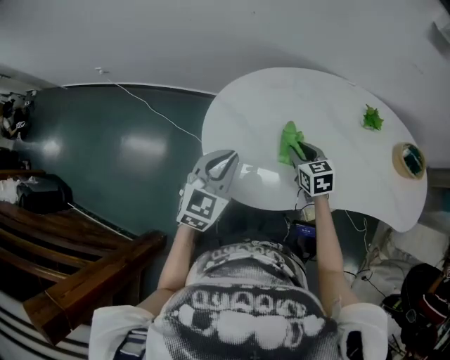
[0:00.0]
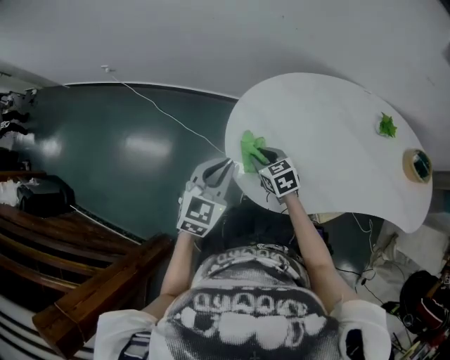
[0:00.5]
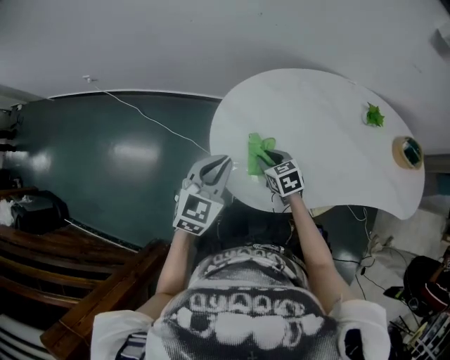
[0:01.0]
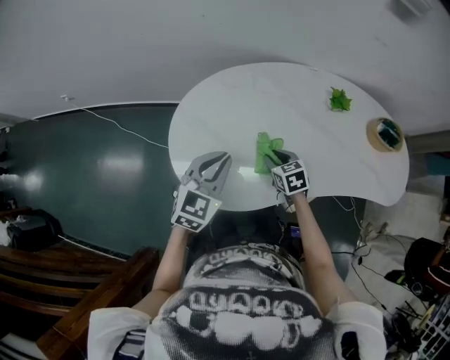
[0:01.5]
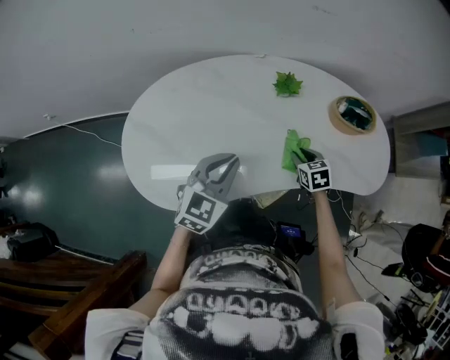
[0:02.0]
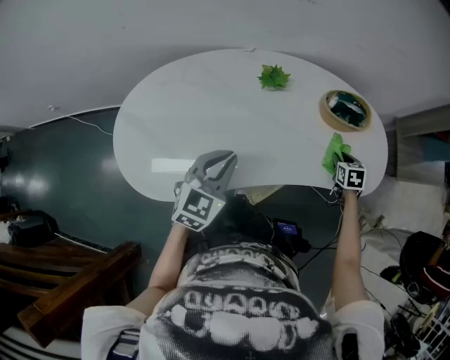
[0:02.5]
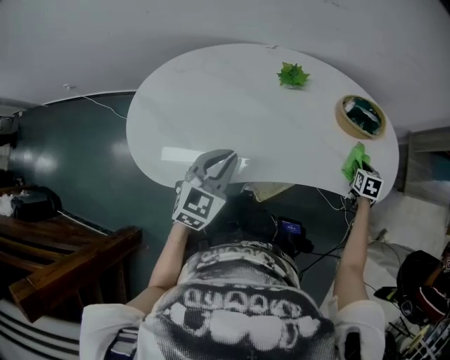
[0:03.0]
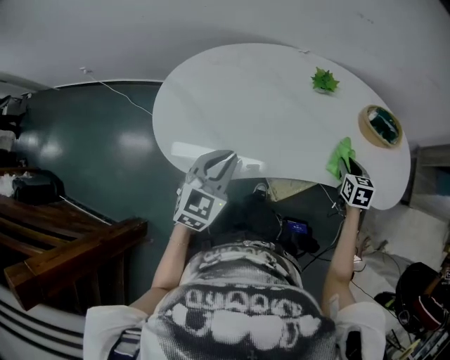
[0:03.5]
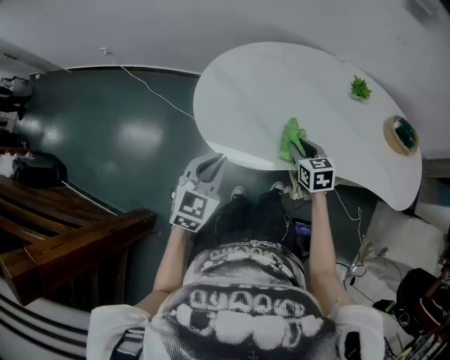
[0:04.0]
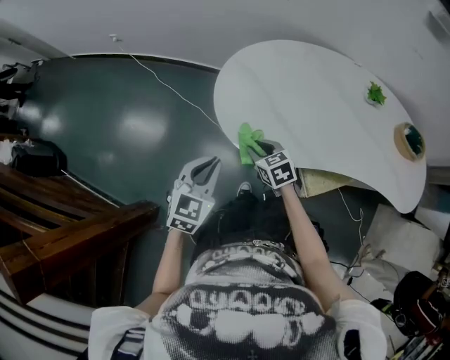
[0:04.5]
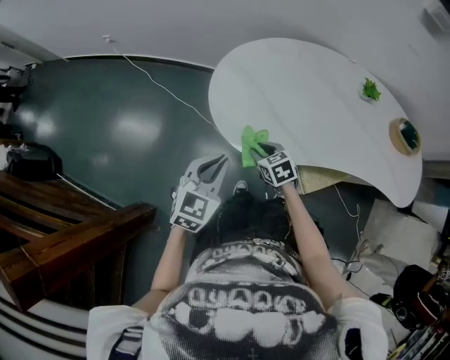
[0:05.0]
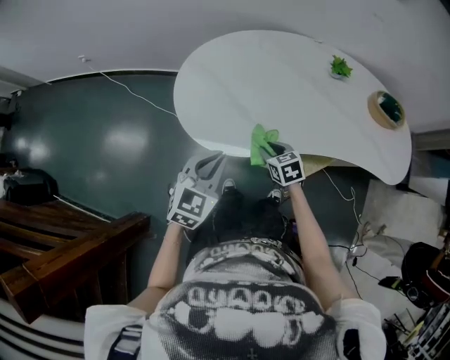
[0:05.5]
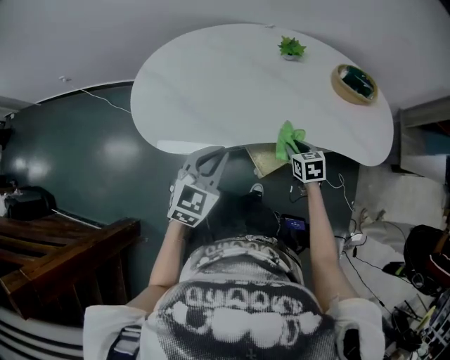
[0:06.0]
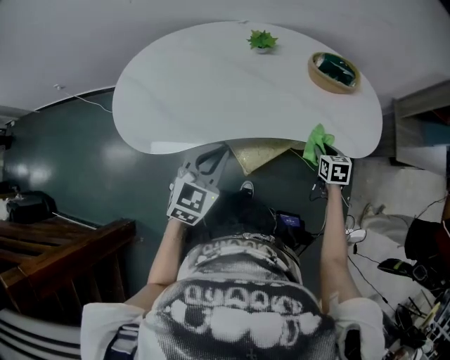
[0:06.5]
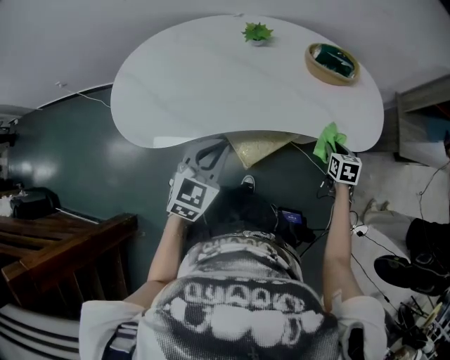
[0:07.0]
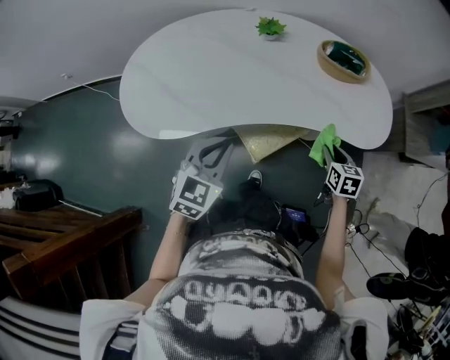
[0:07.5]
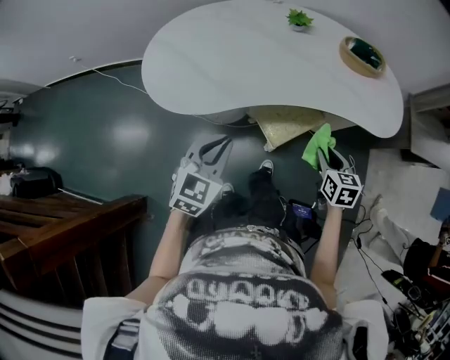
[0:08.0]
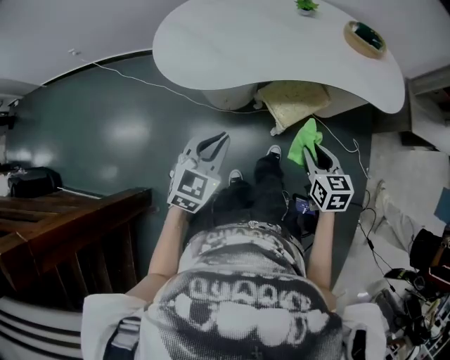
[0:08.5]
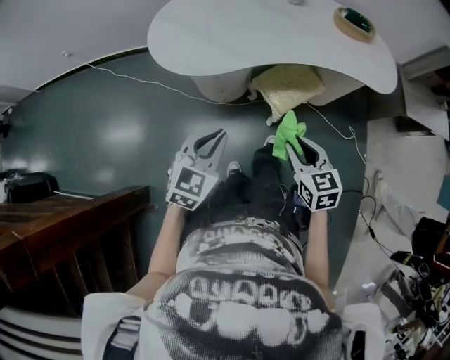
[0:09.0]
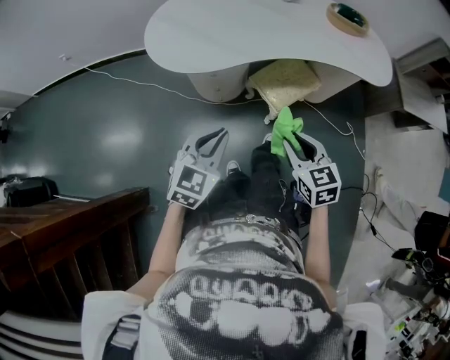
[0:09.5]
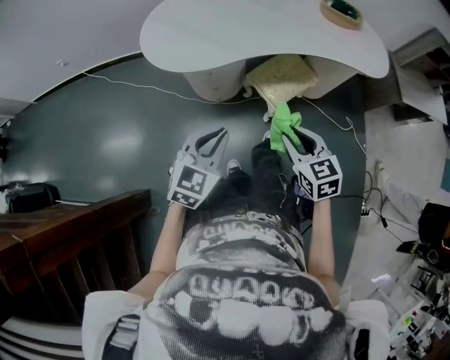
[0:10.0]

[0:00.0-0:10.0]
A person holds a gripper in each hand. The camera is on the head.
0.0 to 2.0 s: The left gripper shifts by roughly 30 cm; the right gripper moves approximately 35 cm, and changes its angle by about 20 degrees.
2.0 to 4.0 s: The right gripper ends up about 30 cm from where it was, and changes its angle by some 20 degrees, while the left gripper ends up about 30 cm from where it was, and turns by roughly 20 degrees.
4.0 to 6.0 s: The left gripper ends up roughly 20 cm from where it was. The right gripper shifts by about 25 cm.
6.0 to 8.0 s: The right gripper travels backward, to the right and upward by about 20 cm. Meanwhile the left gripper goes roughly 10 cm backward, and goes to the right and returns, some 15 cm each way.
8.0 to 10.0 s: The left gripper heads backward, covering some 15 cm; the right gripper goes some 25 cm backward and to the left, and turns by some 20 degrees.

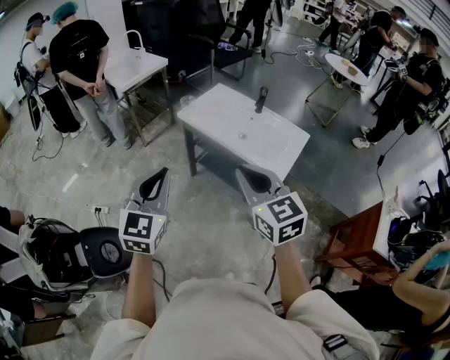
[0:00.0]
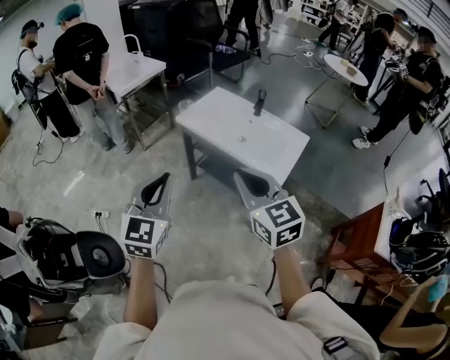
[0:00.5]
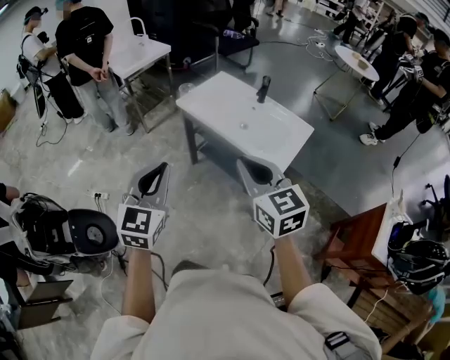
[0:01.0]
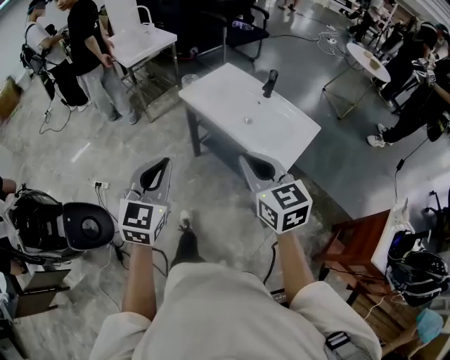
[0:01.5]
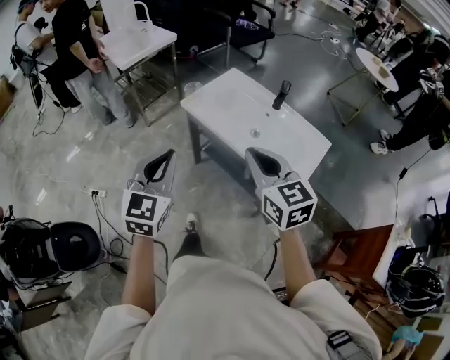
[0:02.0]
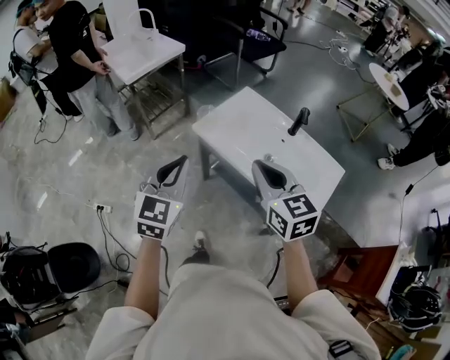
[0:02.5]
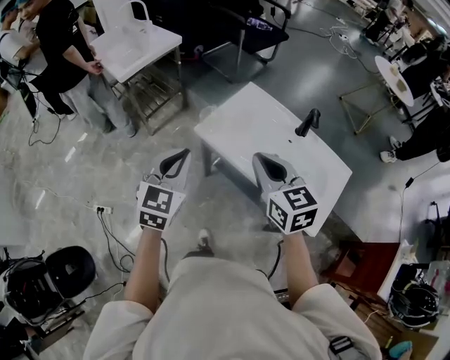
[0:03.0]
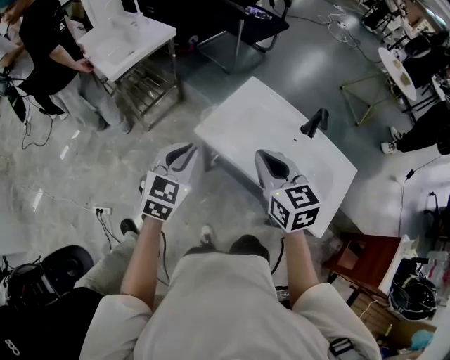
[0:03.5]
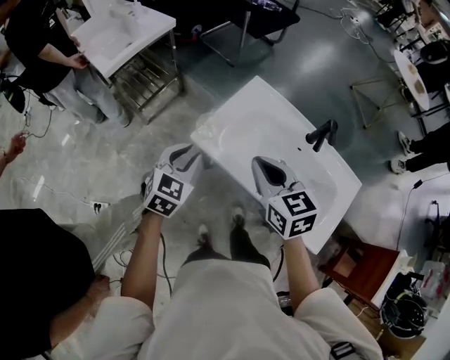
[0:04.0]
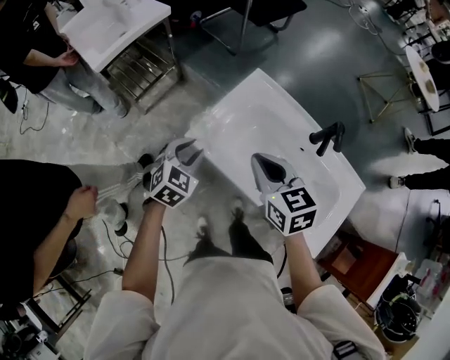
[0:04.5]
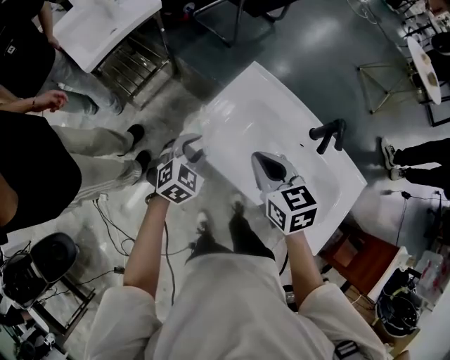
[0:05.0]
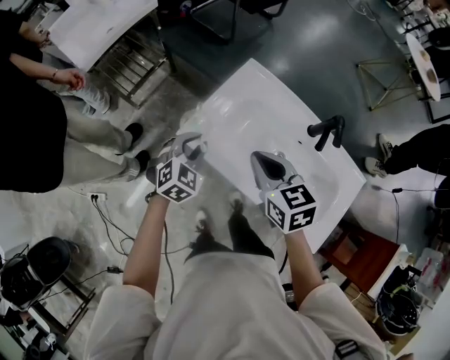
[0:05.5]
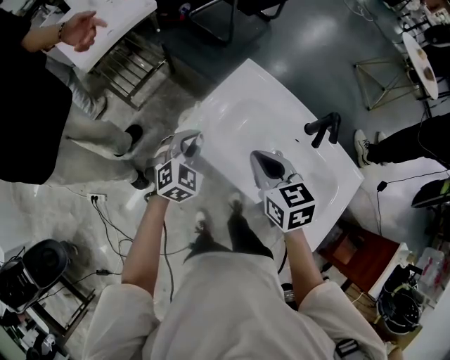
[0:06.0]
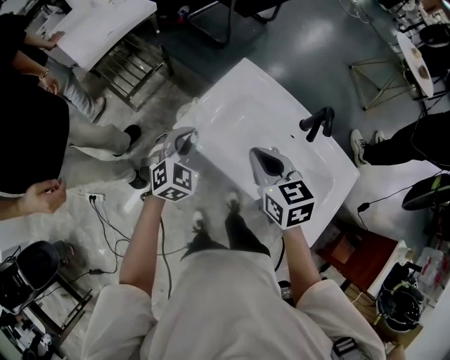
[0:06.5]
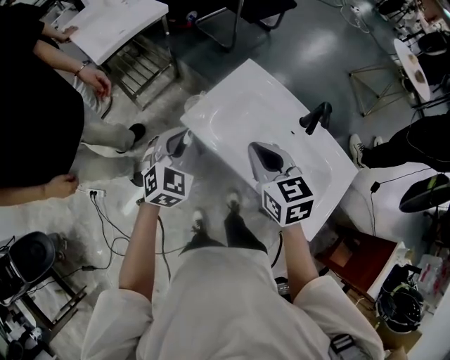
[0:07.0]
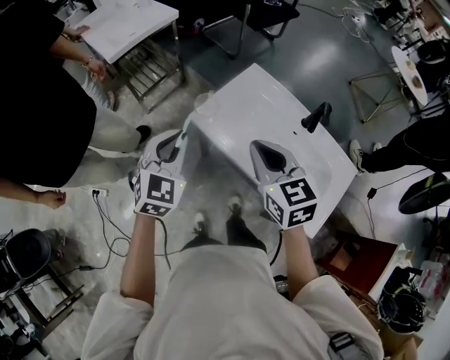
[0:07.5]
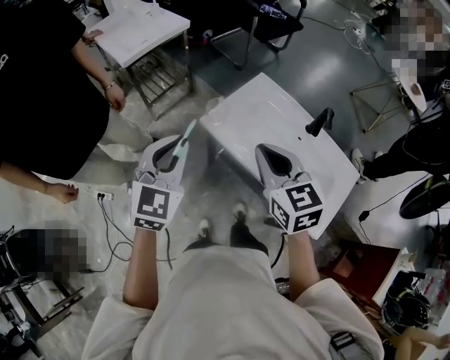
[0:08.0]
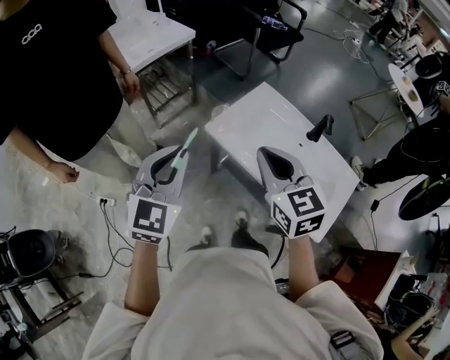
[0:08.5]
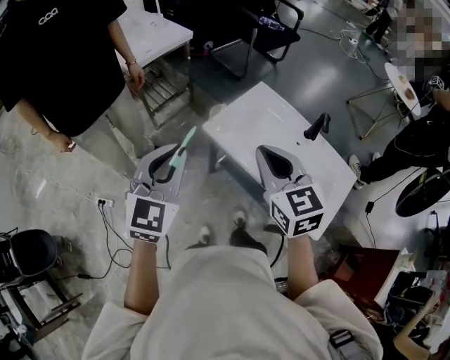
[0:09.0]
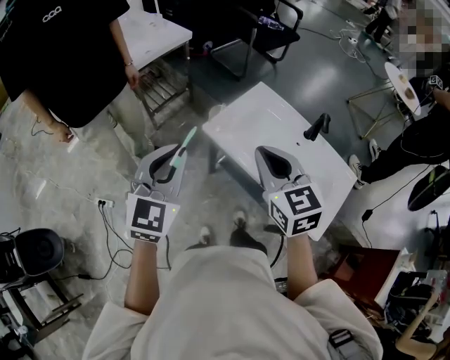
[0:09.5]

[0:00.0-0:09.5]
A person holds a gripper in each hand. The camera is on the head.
0.0 to 2.0 s: The grippers both shift forward by approximately 20 cm.
2.0 to 4.0 s: The left gripper shifts approximately 40 cm forward and downward, turns by some 30 degrees, and opens its fingers. Meanwhile the right gripper moves forward, about 35 cm.
4.0 to 5.5 s: The right gripper is displaced downward and forward by roughly 10 cm, while the left gripper goes some 15 cm downward, forward and to the right.
5.5 to 7.5 s: The left gripper moves upward, backward and to the left, some 25 cm, and rotates roughly 20 degrees. Meanwhile the right gripper moves backward and upward, about 15 cm.
7.5 to 9.5 s: The right gripper travels upward and backward by approximately 10 cm, while the left gripper goes about 15 cm upward, backward and to the left.

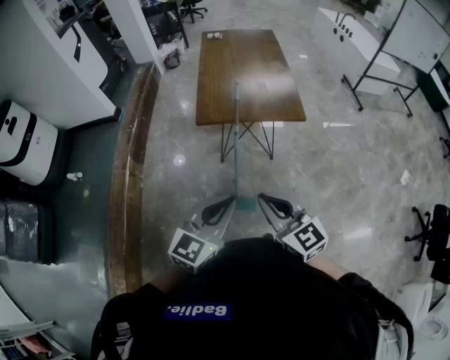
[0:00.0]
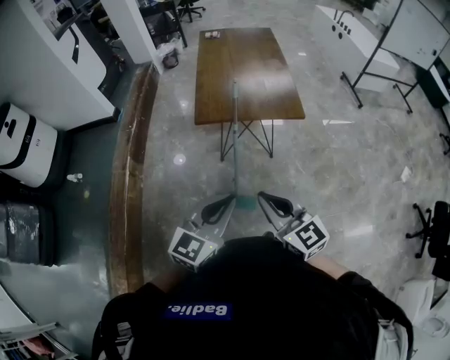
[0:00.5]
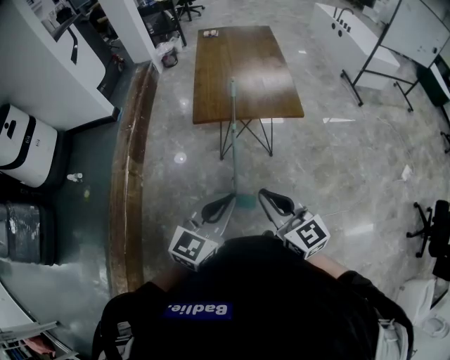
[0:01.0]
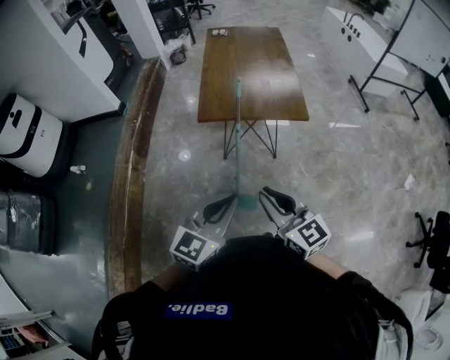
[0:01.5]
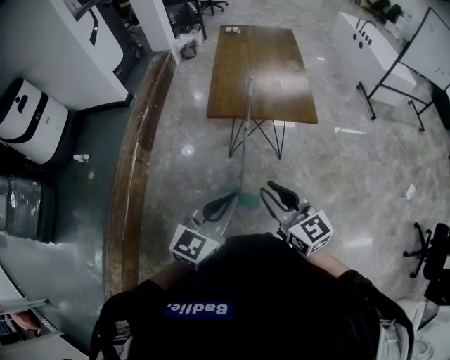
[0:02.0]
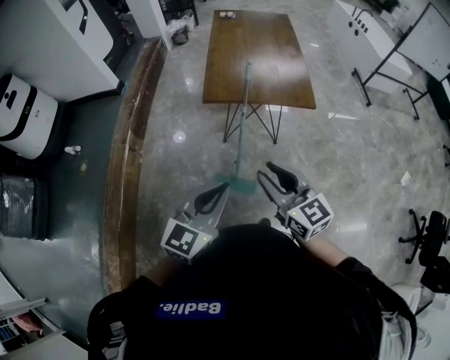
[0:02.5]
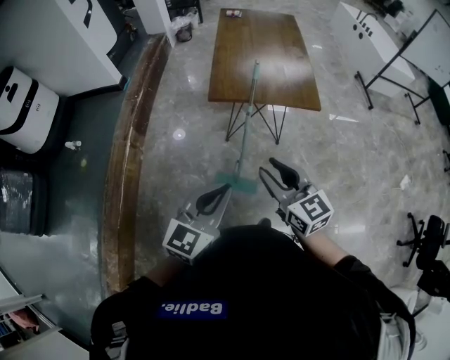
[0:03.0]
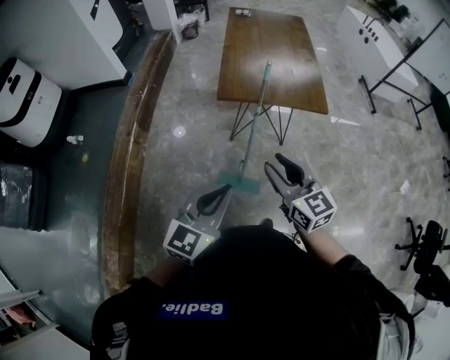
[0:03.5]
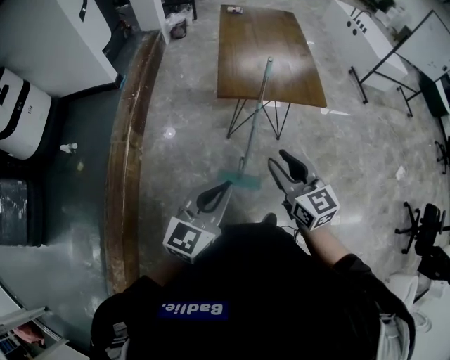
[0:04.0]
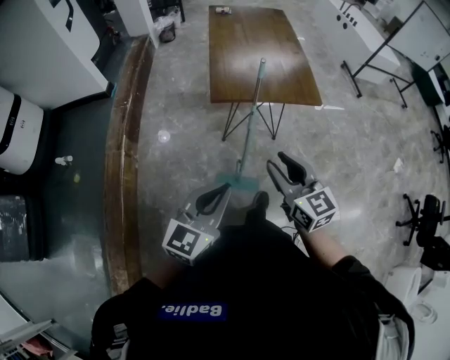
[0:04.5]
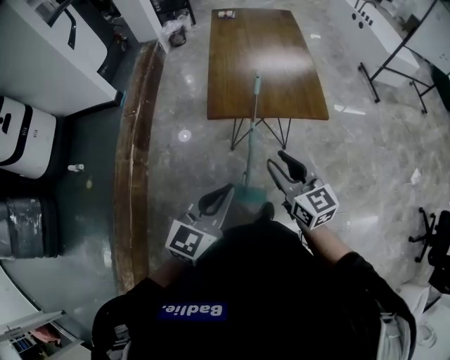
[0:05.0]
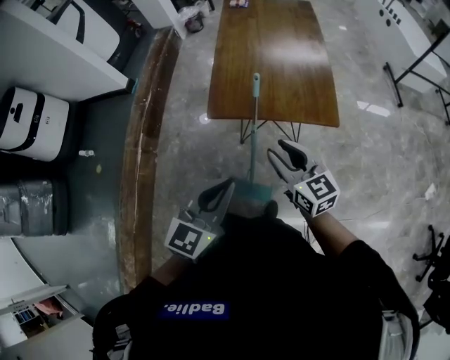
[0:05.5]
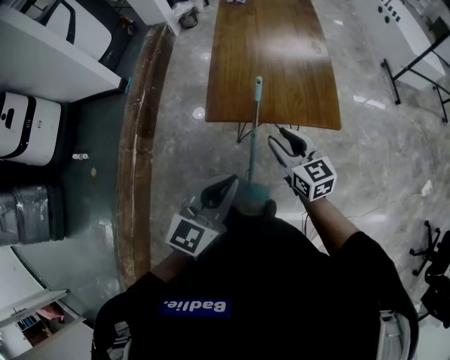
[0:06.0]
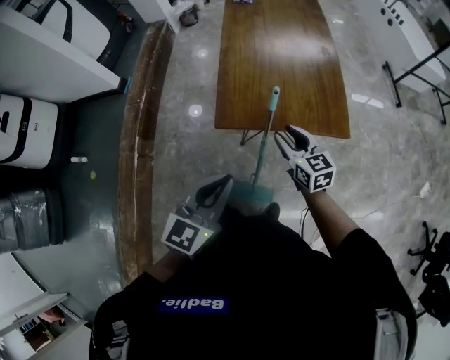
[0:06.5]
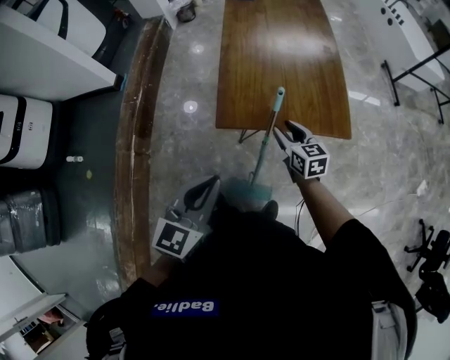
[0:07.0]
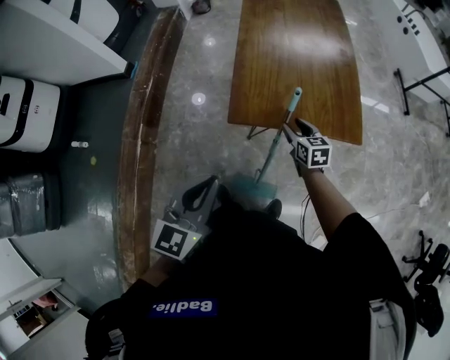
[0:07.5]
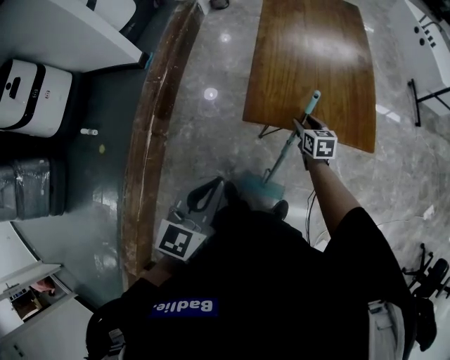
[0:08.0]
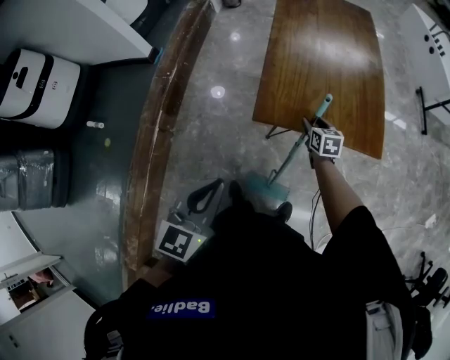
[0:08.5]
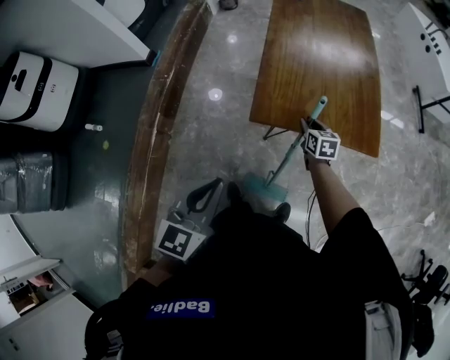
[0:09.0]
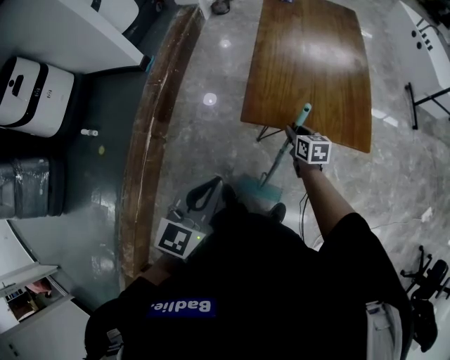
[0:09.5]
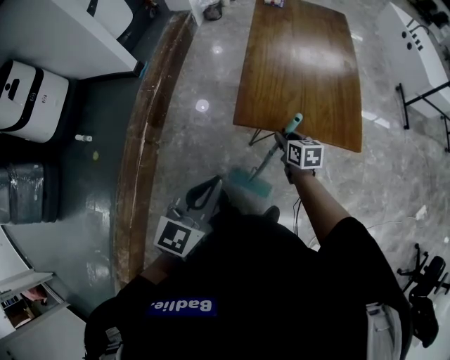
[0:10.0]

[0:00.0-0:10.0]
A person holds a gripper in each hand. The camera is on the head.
0.0 to 2.0 s: The grippers stay close to where they were, moving slightly.
2.0 to 4.0 s: The grippers both shift to the left by approximately 10 cm.
4.0 to 6.0 s: Both grippers travel together forward and to the right, some 30 cm.
6.0 to 8.0 s: The left gripper heads to the left, covering approximately 15 cm, while the right gripper is displaced downward and forward by approximately 25 cm, and turns by approximately 30 degrees.
8.0 to 10.0 s: The right gripper is displaced backward by approximately 5 cm.
